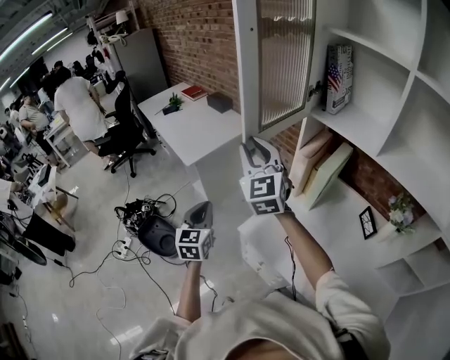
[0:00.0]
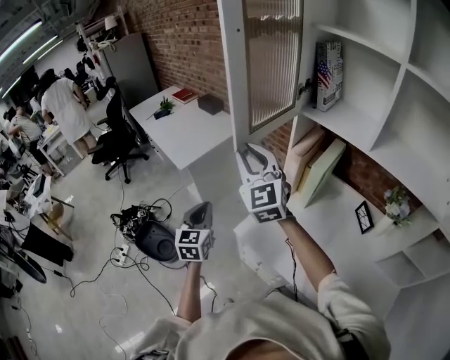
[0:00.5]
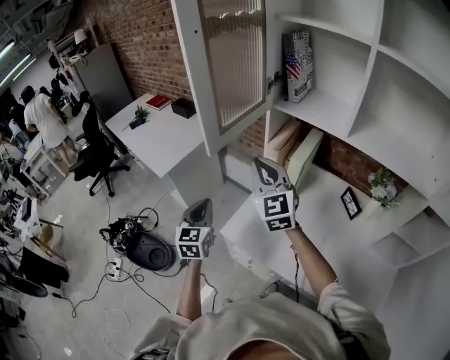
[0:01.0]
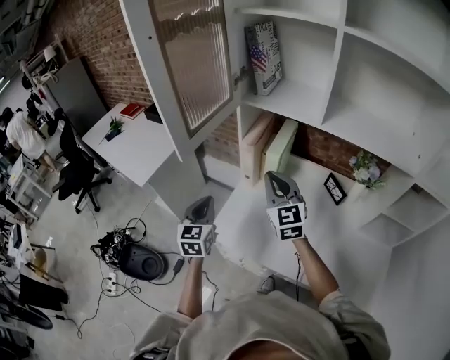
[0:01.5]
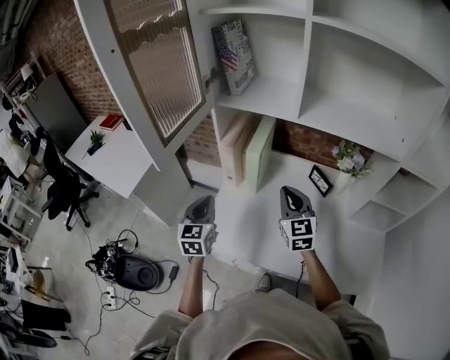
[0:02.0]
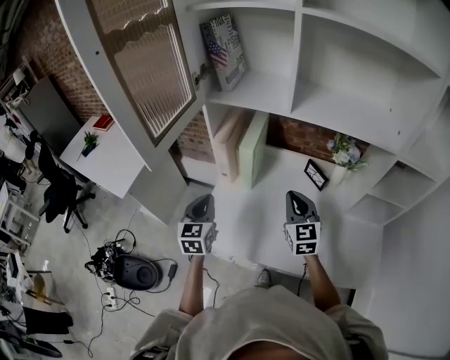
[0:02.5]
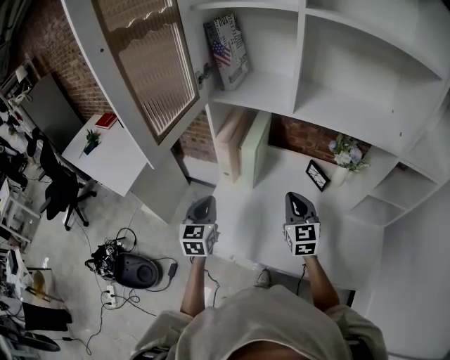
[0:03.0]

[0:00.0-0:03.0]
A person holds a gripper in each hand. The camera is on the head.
0:00.0 to 0:01.5: The left gripper moves to the right, roughly 15 cm, and turns by roughly 20 degrees, while the right gripper is displaced to the right and downward by roughly 25 cm, changes its angle by some 20 degrees, and closes up.
0:01.5 to 0:03.0: The right gripper heads to the right and downward, covering roughly 15 cm, while the left gripper travels to the right by about 5 cm.

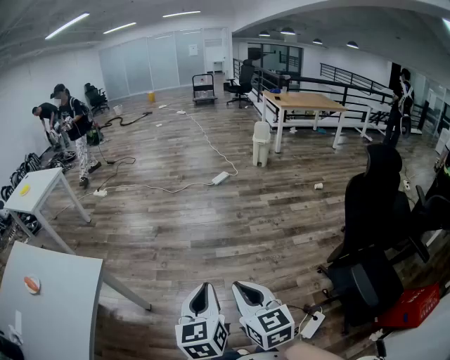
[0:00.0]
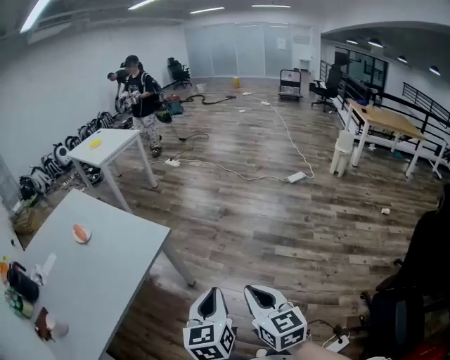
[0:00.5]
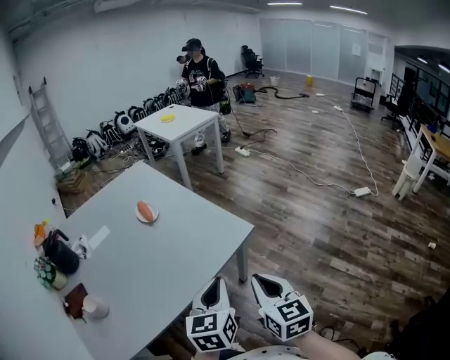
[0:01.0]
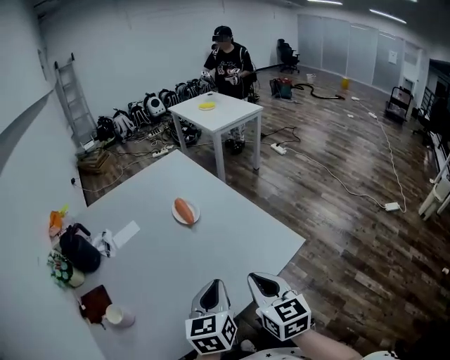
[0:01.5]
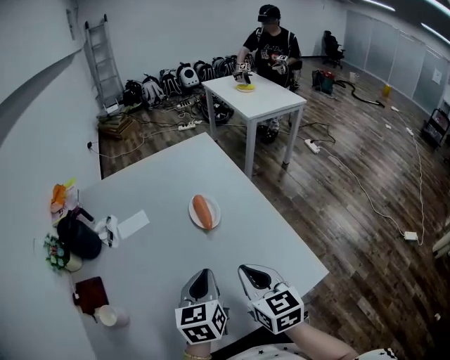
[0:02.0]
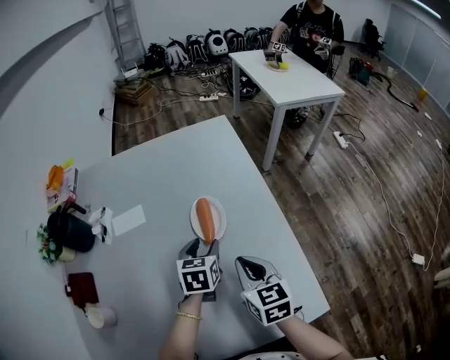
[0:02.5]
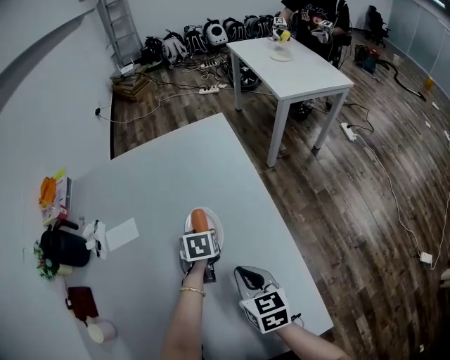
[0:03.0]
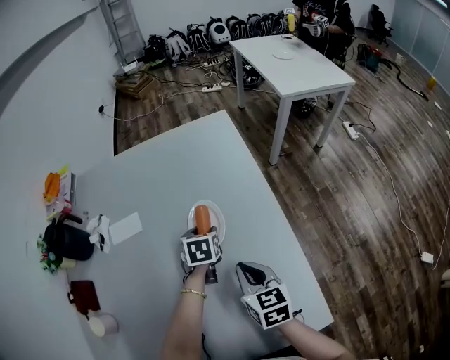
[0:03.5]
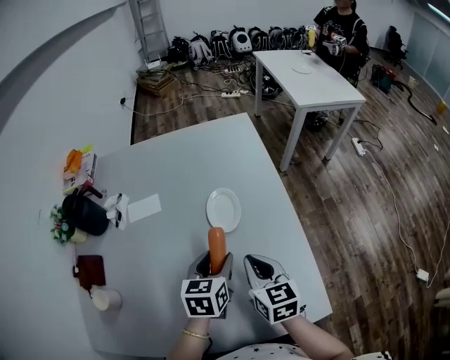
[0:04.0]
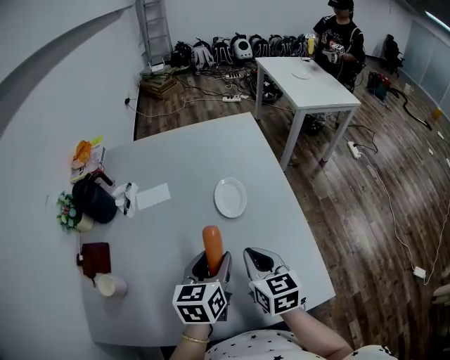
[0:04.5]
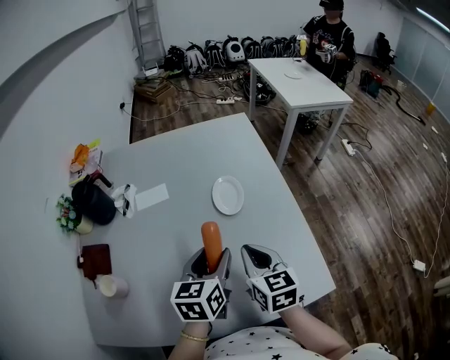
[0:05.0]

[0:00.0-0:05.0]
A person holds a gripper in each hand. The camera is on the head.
0:00.0 to 0:02.5: The two grippers travel together, approximately 90 cm. The right gripper rotates roughly 70 degrees. The left gripper swivels about 70 degrees, and opens.
0:02.5 to 0:05.0: The right gripper is displaced backward and to the left by roughly 10 cm. The left gripper heads backward and upward, covering approximately 20 cm.

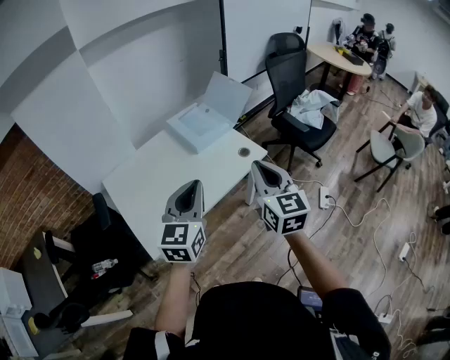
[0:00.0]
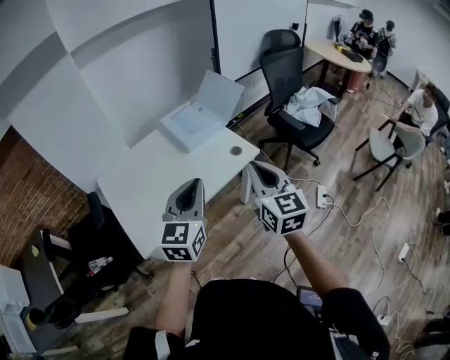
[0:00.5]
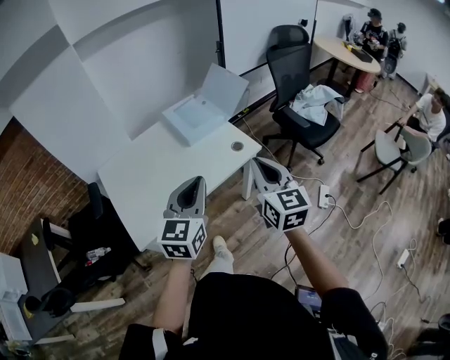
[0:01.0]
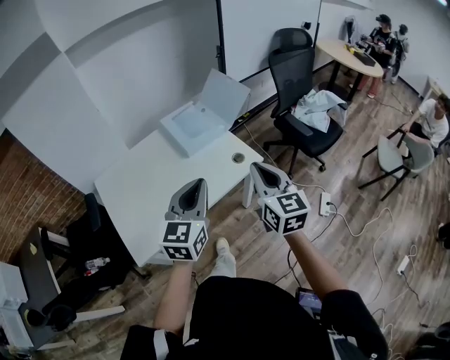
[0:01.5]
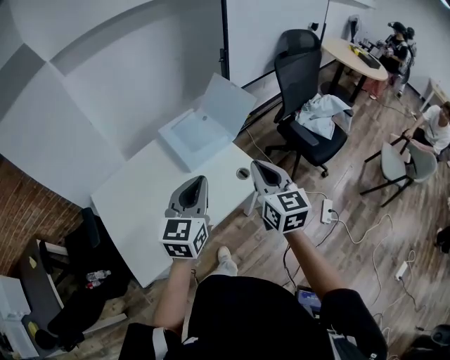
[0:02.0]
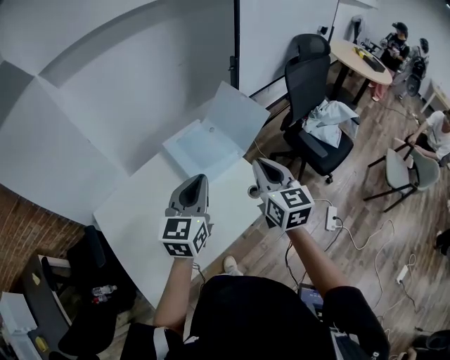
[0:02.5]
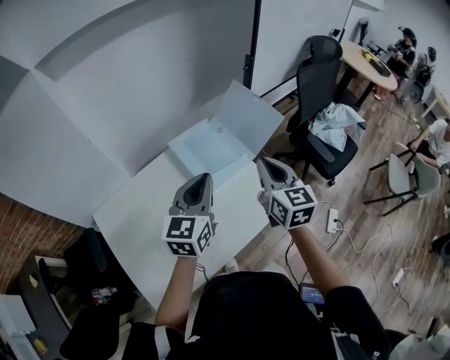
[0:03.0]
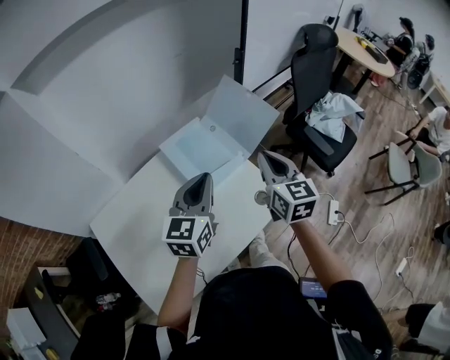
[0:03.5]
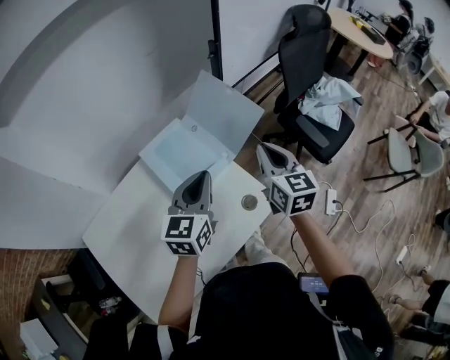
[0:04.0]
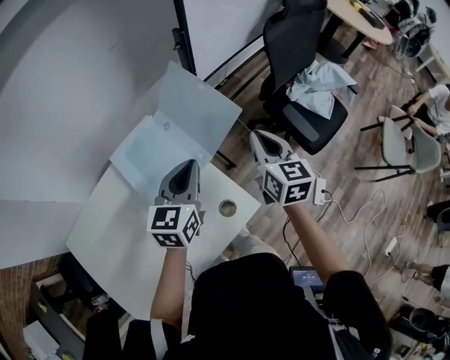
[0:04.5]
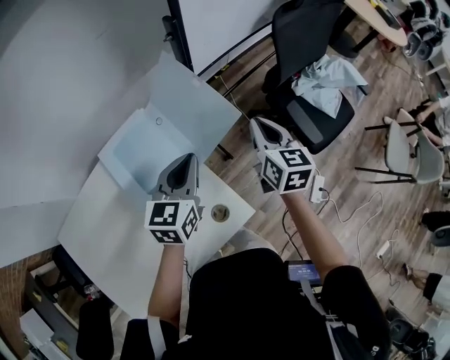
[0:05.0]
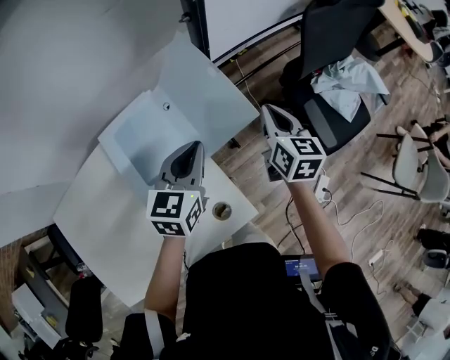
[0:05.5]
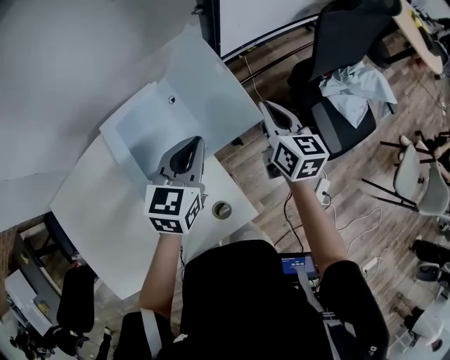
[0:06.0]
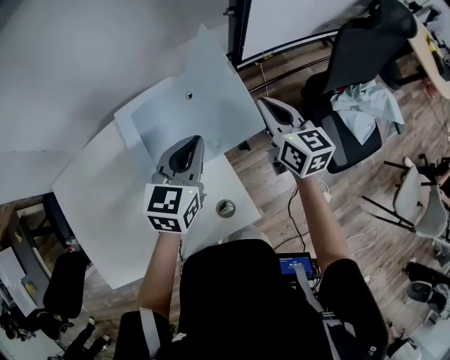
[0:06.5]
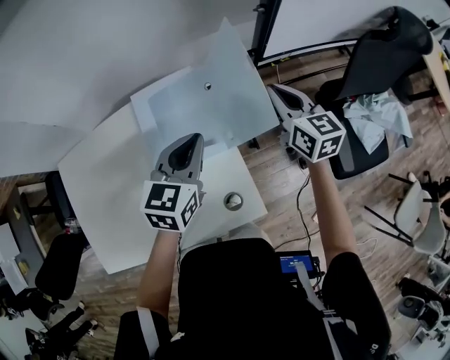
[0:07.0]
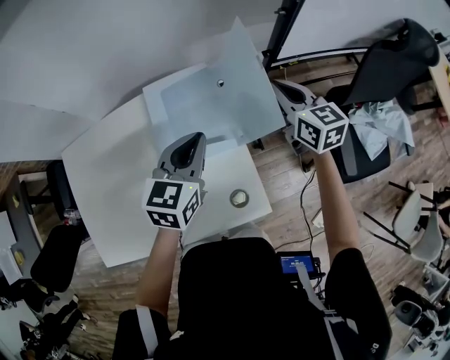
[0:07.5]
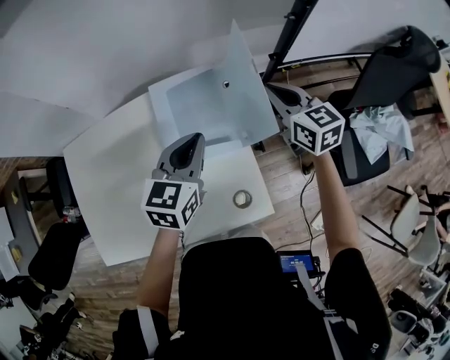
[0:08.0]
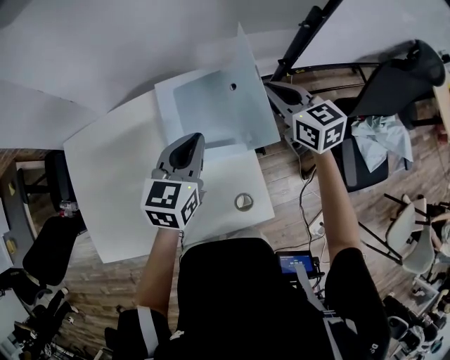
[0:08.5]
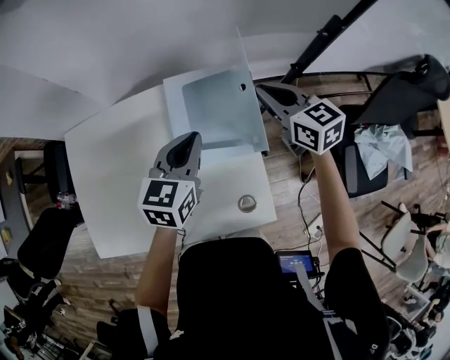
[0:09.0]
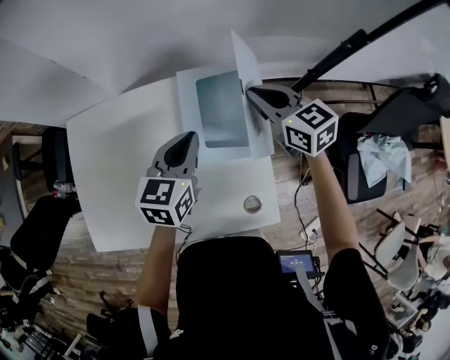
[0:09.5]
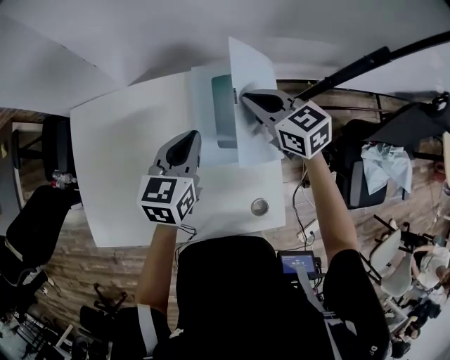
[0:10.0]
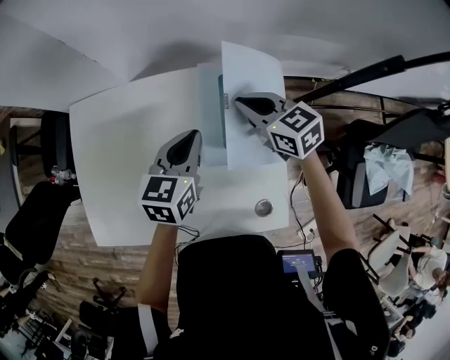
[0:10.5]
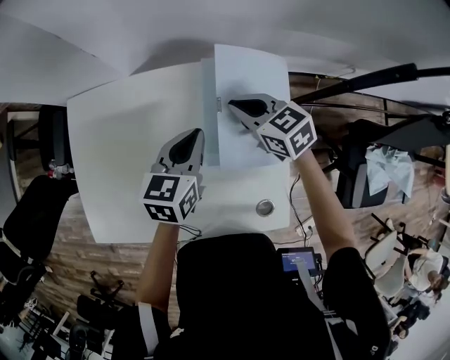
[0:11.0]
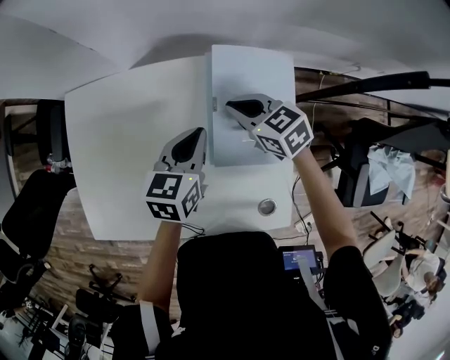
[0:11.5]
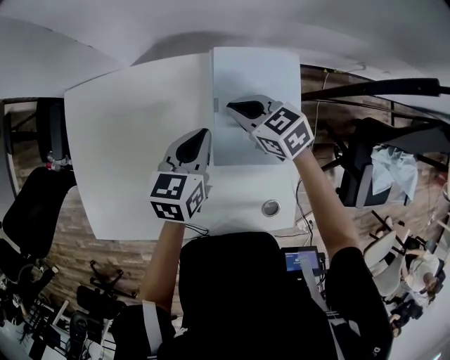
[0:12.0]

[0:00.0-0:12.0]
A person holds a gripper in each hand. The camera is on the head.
0:00.0 to 0:02.0: Both grippers travel together forward, some 20 cm.
0:02.0 to 0:04.0: The grippers both shift forward by approximately 30 cm.
0:04.0 to 0:06.0: The right gripper heads forward and downward, covering about 25 cm. Meanwhile the left gripper moves forward, downward and to the right, about 25 cm.
0:06.0 to 0:08.0: The two grippers go about 15 cm to the left. The right gripper changes its angle by roughly 40 degrees.
0:08.0 to 0:10.0: The grippers both shift to the left by some 15 cm. The right gripper rotates about 20 degrees.
0:10.0 to 0:12.0: The right gripper shifts approximately 15 cm downward and to the left, while the left gripper shifts roughly 10 cm downward.

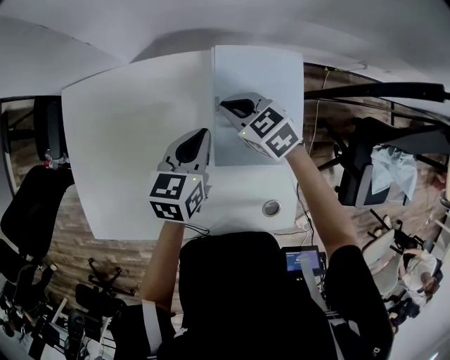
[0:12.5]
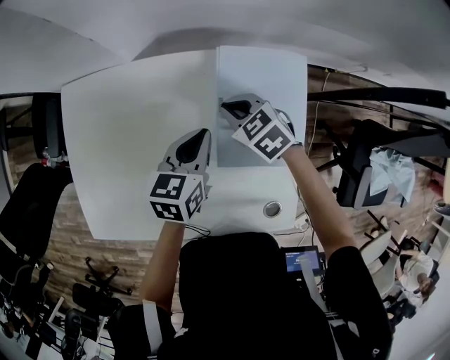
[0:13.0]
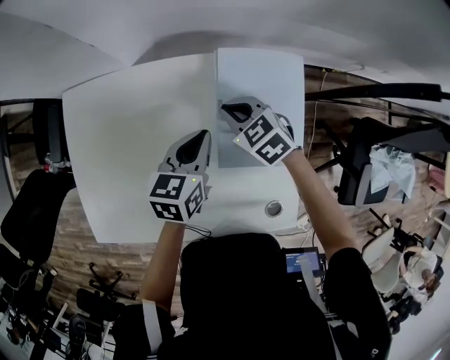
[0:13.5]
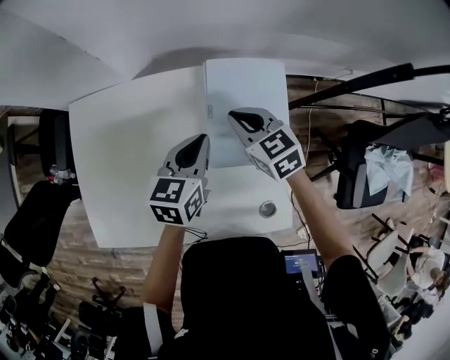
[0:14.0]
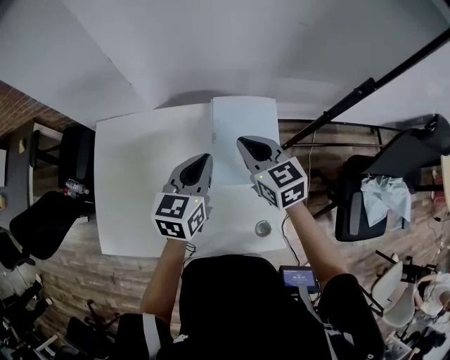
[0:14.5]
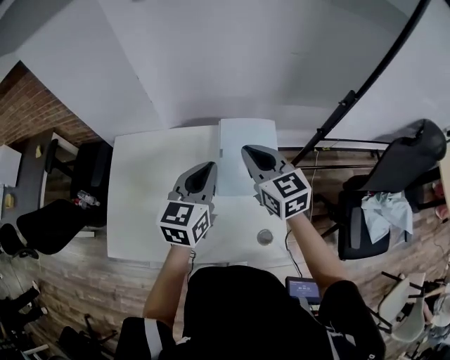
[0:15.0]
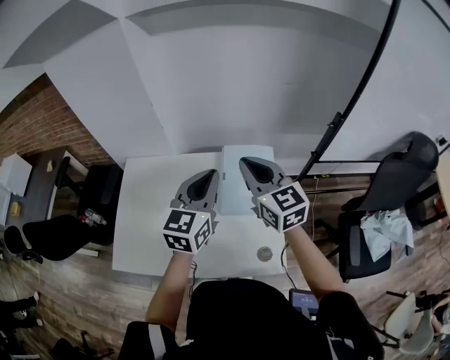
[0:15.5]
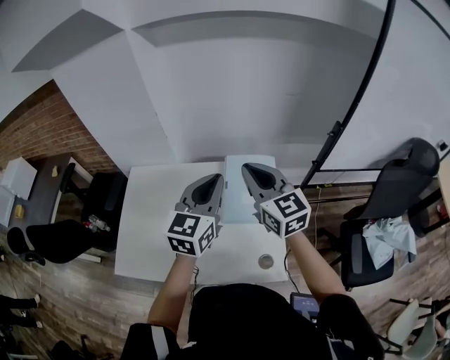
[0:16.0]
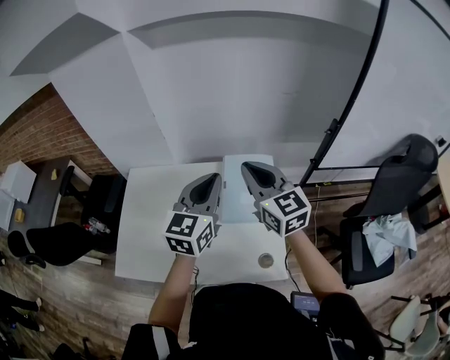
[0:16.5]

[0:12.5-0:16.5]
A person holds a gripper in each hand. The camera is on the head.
0:12.5 to 0:14.5: The right gripper shifts roughly 20 cm upward and backward, and turns by roughly 30 degrees. The left gripper moves upward, approximately 15 cm.
0:14.5 to 0:16.5: Both grippers move upward, approximately 20 cm. The right gripper swivels approximately 20 degrees. The left gripper rotates some 20 degrees.

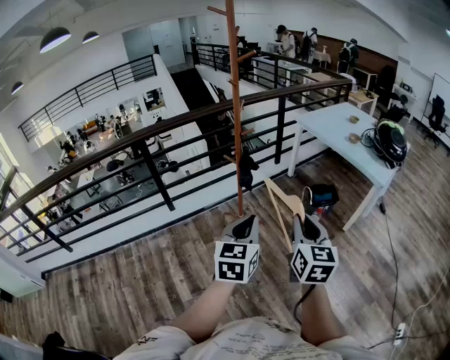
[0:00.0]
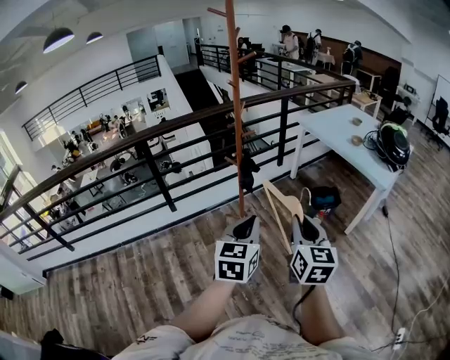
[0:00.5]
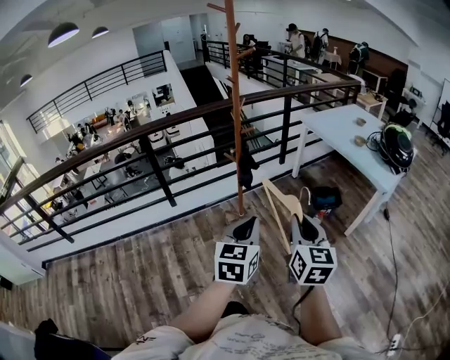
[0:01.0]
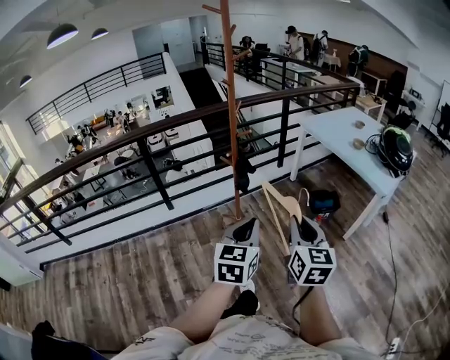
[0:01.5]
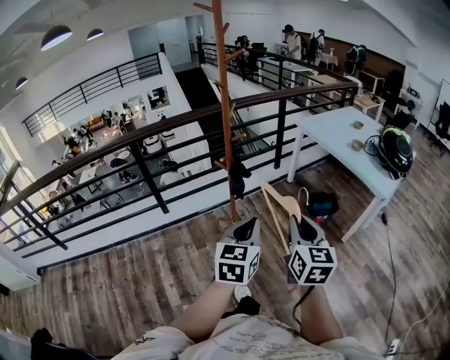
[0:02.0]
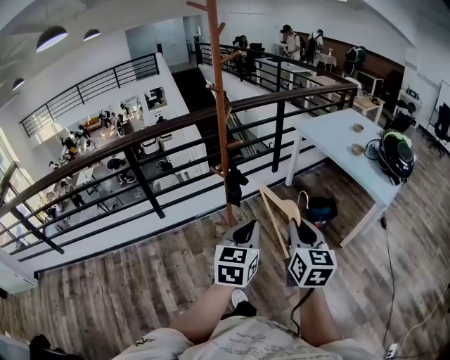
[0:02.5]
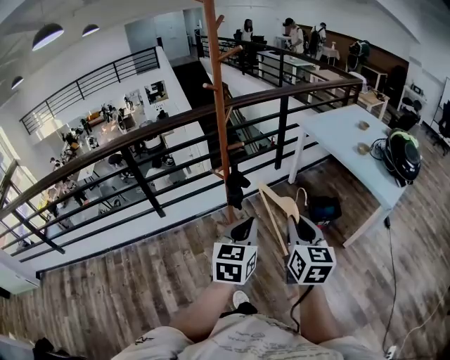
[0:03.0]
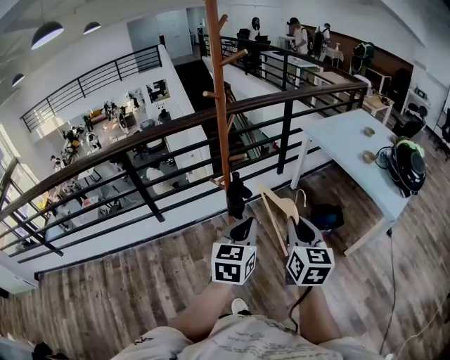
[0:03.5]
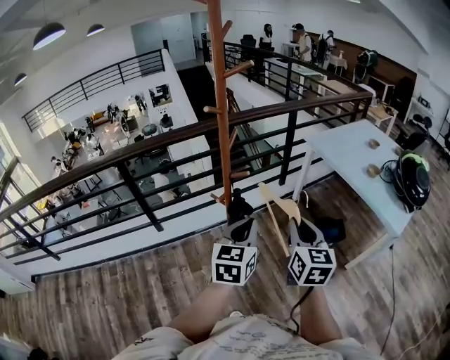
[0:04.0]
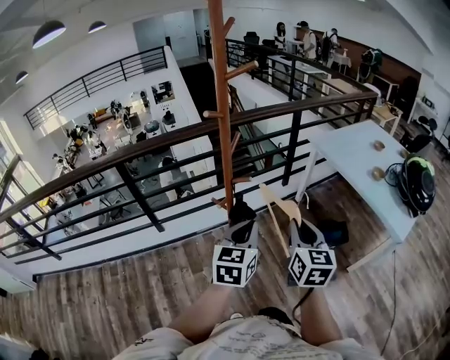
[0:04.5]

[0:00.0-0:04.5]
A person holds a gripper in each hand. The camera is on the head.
0:00.0 to 0:02.0: The two grippers go some 10 cm forward and to the right.
0:02.0 to 0:04.5: The two grippers go roughly 30 cm forward.
